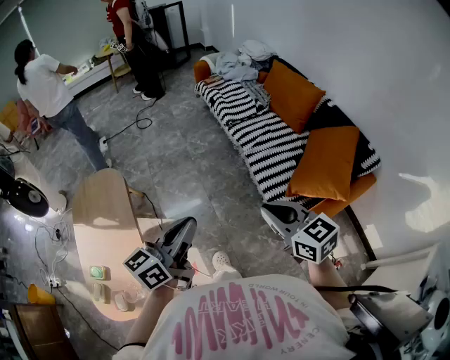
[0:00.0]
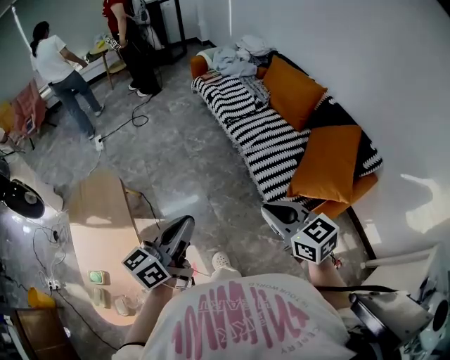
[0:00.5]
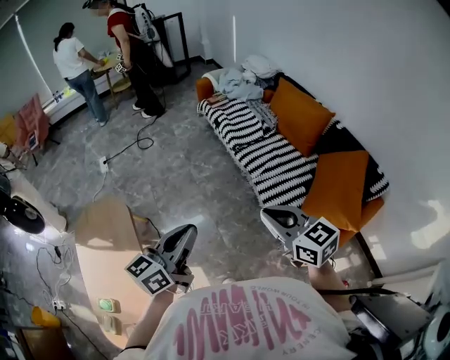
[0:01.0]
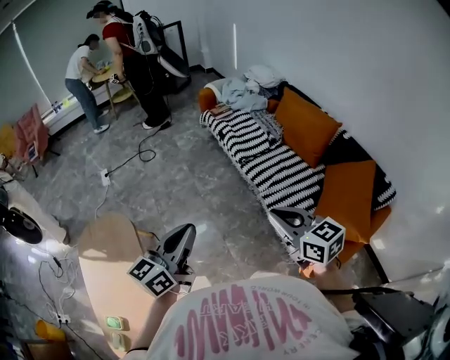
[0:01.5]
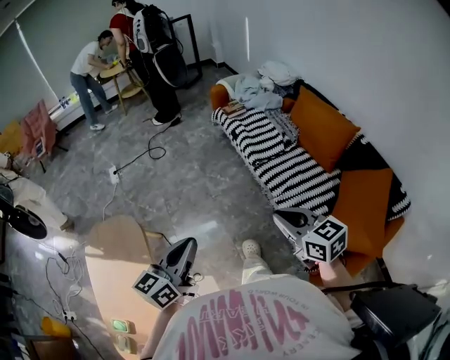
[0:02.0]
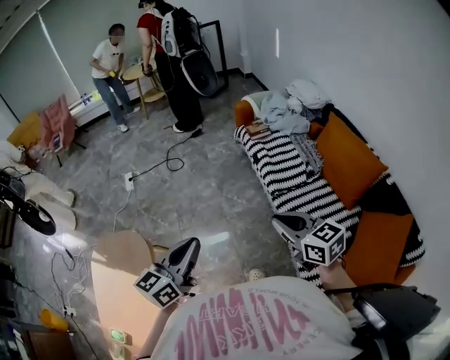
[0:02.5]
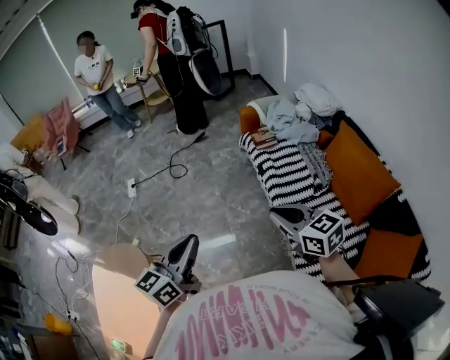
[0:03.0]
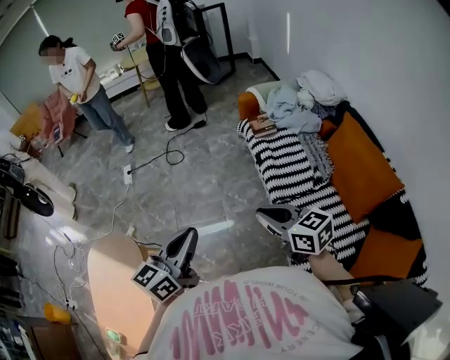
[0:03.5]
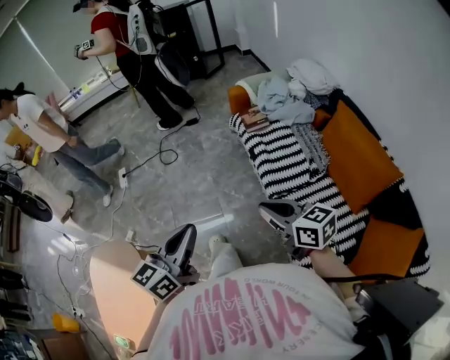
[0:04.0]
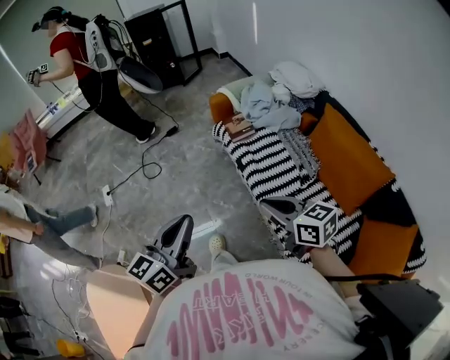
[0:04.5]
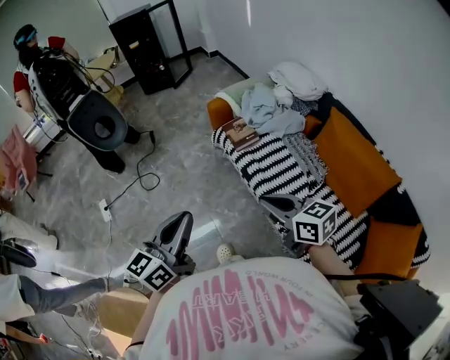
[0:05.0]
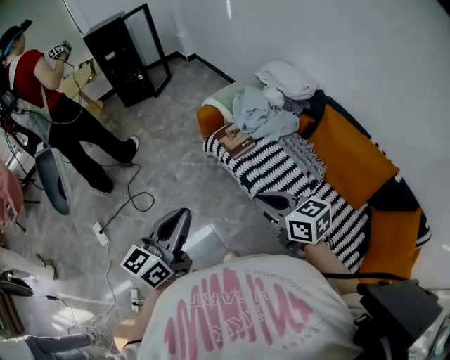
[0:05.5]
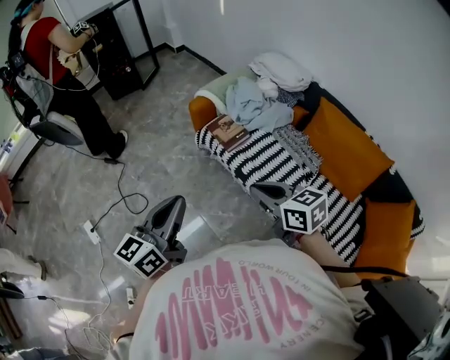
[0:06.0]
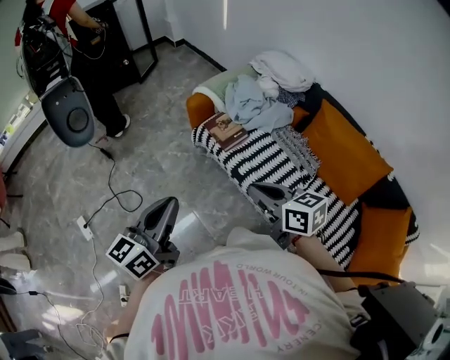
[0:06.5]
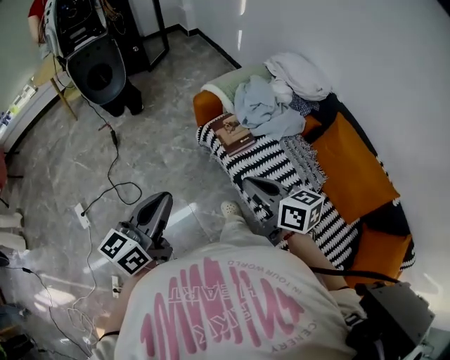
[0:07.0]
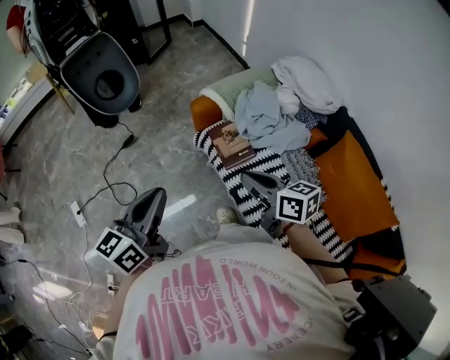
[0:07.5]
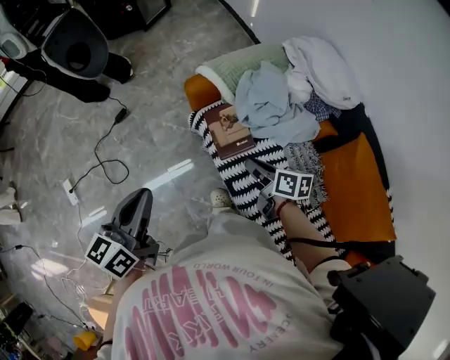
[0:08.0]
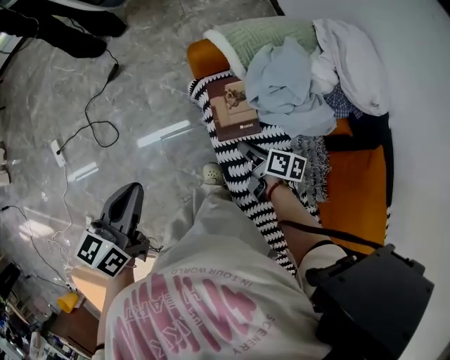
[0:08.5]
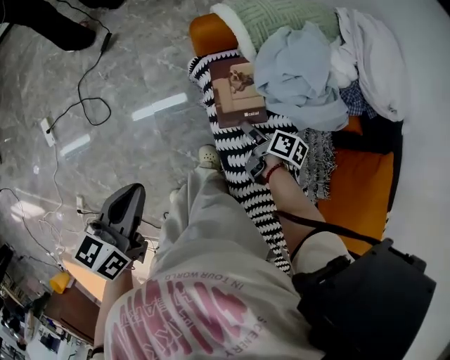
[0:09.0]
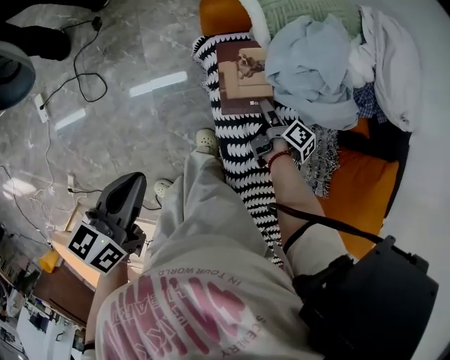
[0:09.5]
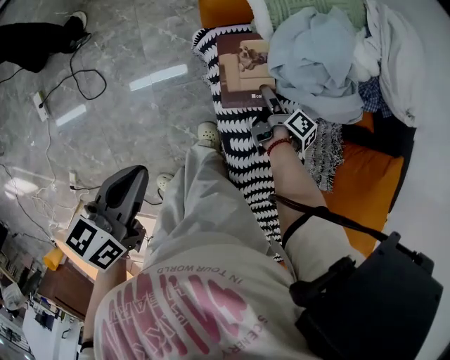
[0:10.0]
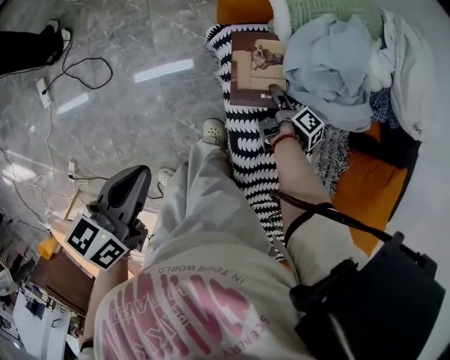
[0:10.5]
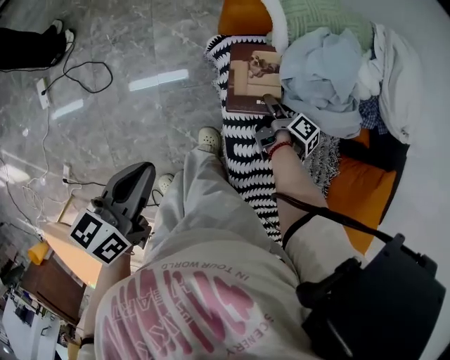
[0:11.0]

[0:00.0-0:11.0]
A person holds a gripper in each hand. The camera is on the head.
0:00.0 to 0:02.0: The left gripper goes some 25 cm forward and to the left. Meanwhile the right gripper moves forward, roughly 25 cm.
0:02.0 to 0:03.5: The two grippers go roughly 25 cm forward.
0:03.5 to 0:05.5: Both grippers travel together forward, roughly 25 cm. The left gripper swivels roughly 20 degrees. The right gripper rotates some 30 degrees.
0:05.5 to 0:07.5: The grippers both shift forward by some 20 cm.
0:07.5 to 0:09.0: The right gripper goes roughly 30 cm downward, twists about 40 degrees clockwise, seen from behind, and opens its fingers. The left gripper travels downward by about 15 cm, and swivels approximately 30 degrees.
0:09.0 to 0:11.0: The right gripper ends up roughly 5 cm from where it was, and closes its fingers.

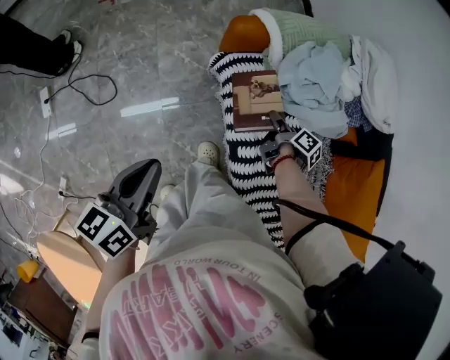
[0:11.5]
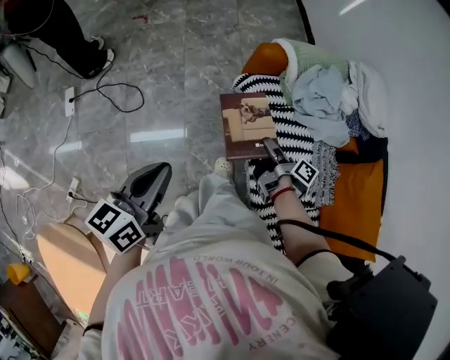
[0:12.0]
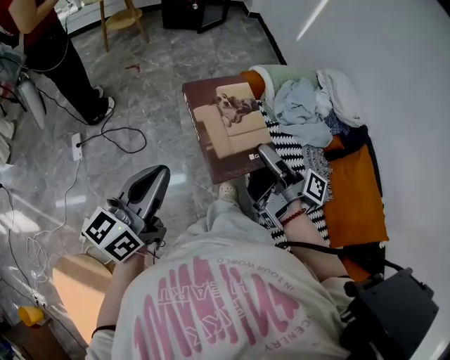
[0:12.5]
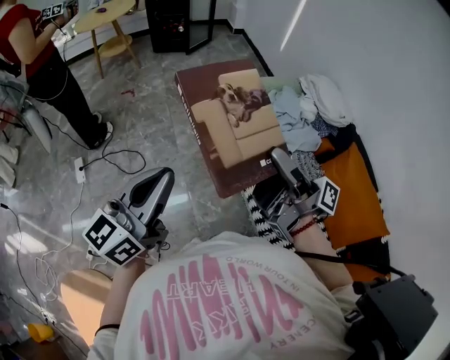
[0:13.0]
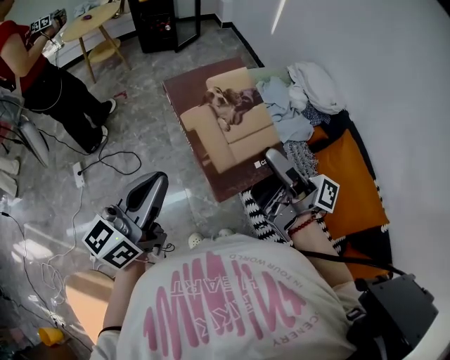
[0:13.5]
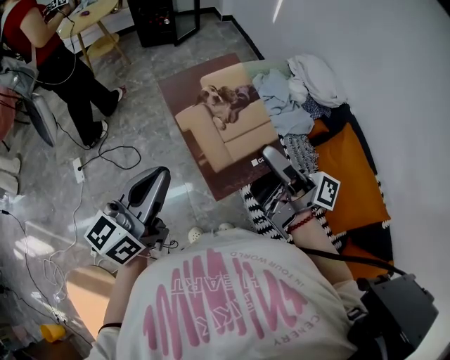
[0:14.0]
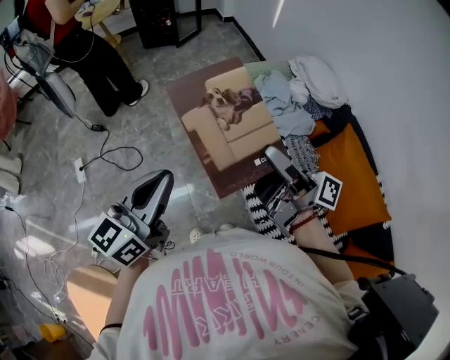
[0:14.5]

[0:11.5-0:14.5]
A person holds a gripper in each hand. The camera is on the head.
0:11.5 to 0:13.0: The left gripper heads upward and backward, covering approximately 25 cm, and changes its angle by roughly 40 degrees; the right gripper goes approximately 50 cm upward and backward, and angles its fingers upward, by approximately 60 degrees.
0:13.0 to 0:14.5: Both grippers move to the right, approximately 5 cm.

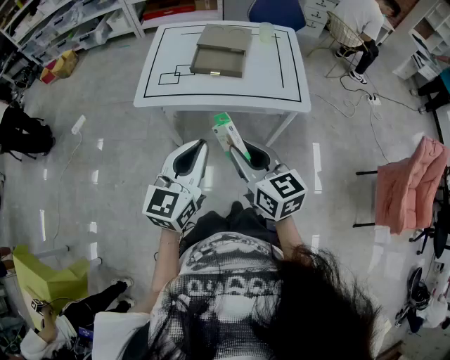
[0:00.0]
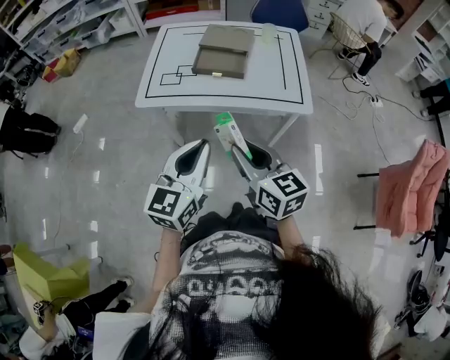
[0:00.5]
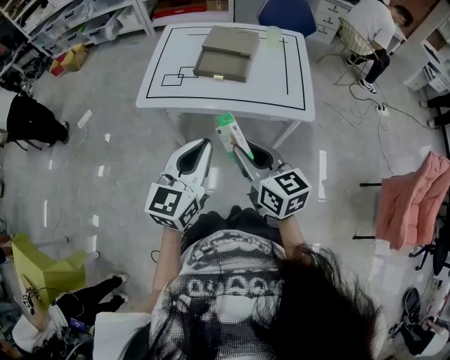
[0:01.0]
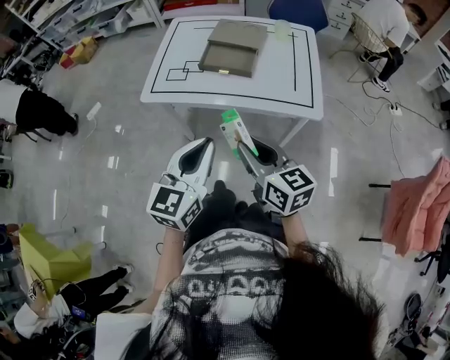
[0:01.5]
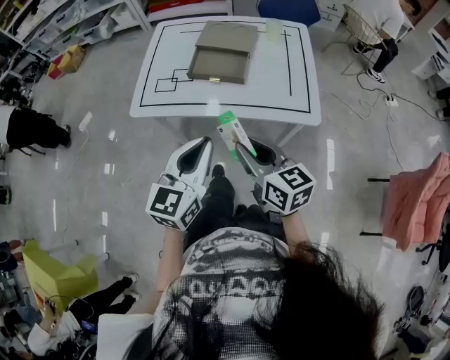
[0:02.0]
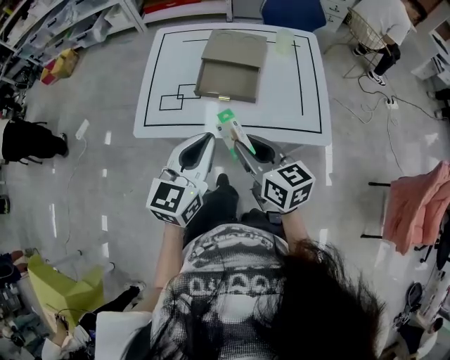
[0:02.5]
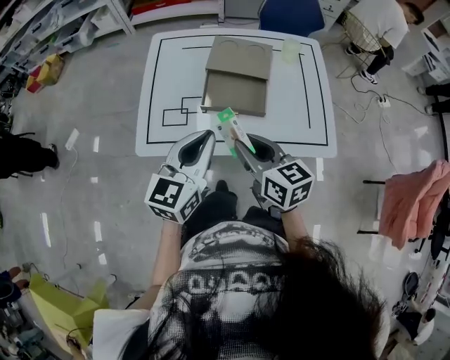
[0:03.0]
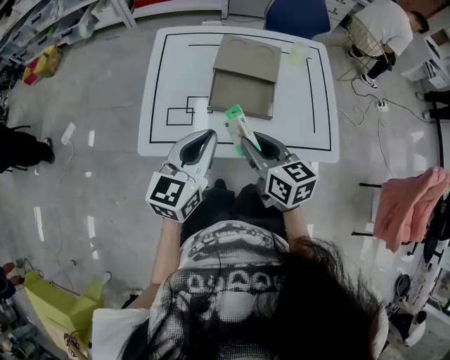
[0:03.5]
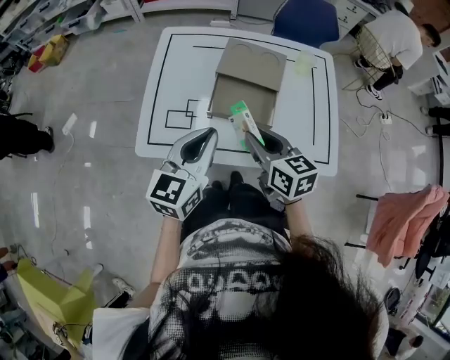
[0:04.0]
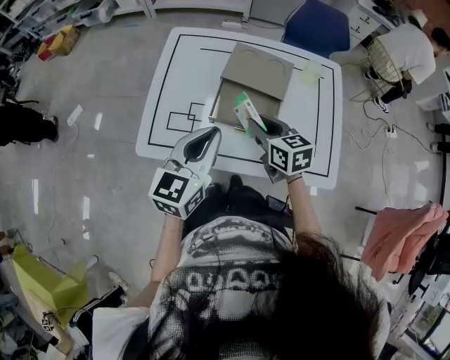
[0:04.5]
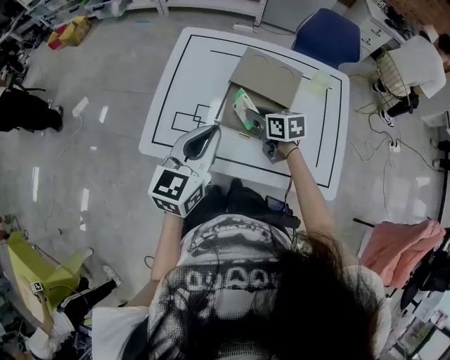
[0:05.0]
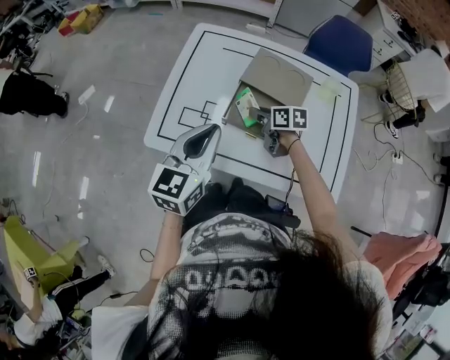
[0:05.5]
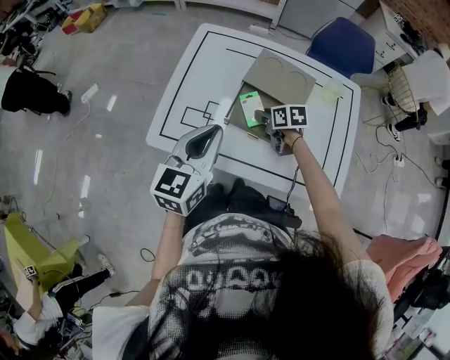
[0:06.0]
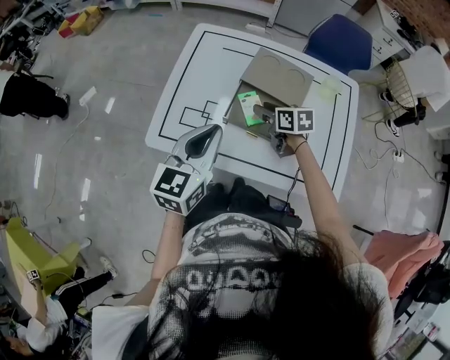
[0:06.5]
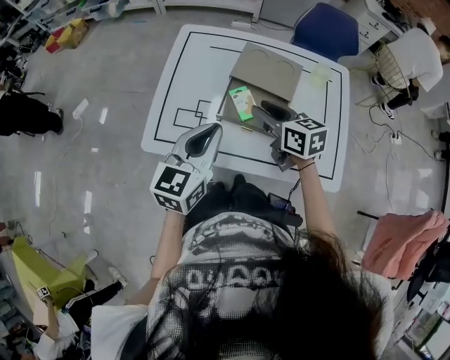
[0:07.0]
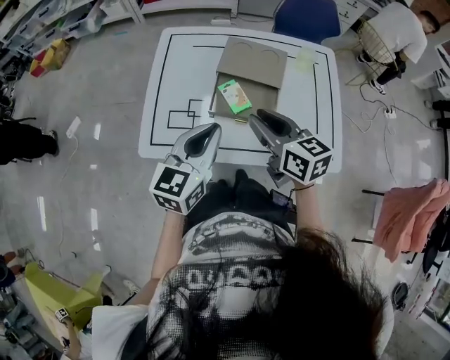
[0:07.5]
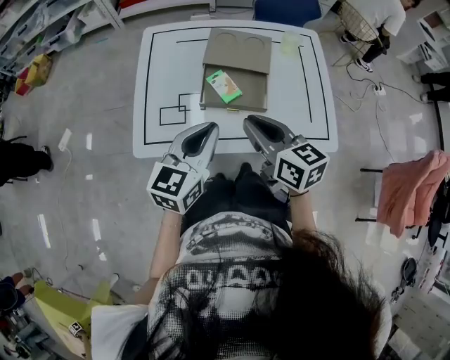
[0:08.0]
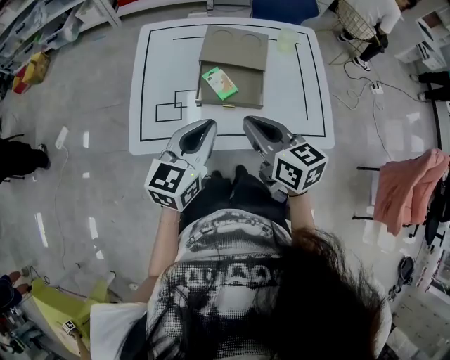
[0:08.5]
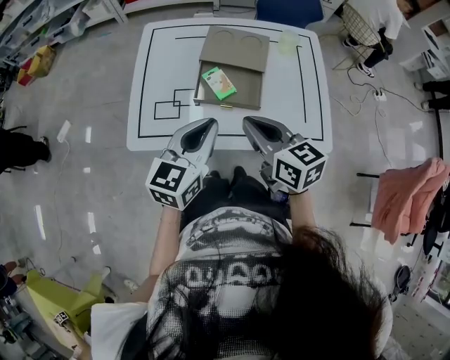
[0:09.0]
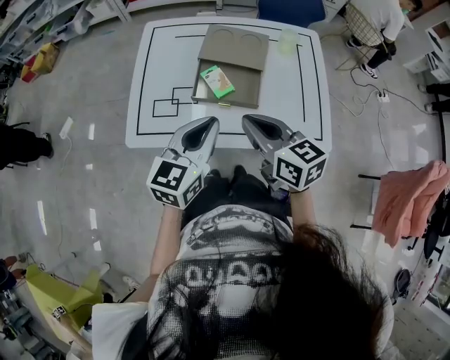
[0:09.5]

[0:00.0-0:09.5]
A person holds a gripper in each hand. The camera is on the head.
0:00.0 to 0:02.0: The grippers both shift forward and to the right by approximately 10 cm.
0:02.0 to 0:04.0: The left gripper goes roughly 30 cm forward and to the left. The right gripper travels forward by some 25 cm.
0:04.0 to 0:05.5: The right gripper is displaced forward and downward by about 20 cm, and turns by about 30 degrees.
0:05.5 to 0:07.5: The right gripper shifts about 25 cm upward and backward, and swivels roughly 30 degrees.
0:07.5 to 0:09.5: The left gripper moves approximately 5 cm, while the right gripper is displaced backward by some 5 cm, and closes its fingers.

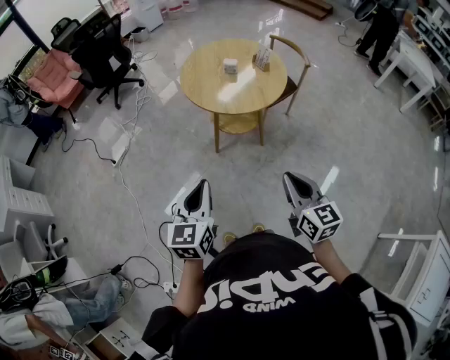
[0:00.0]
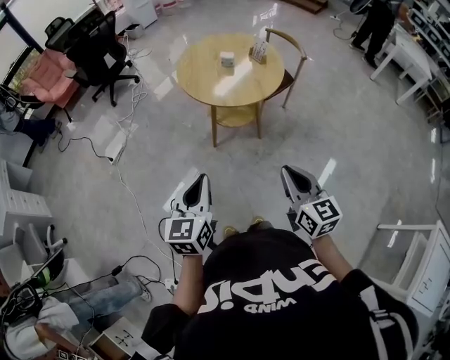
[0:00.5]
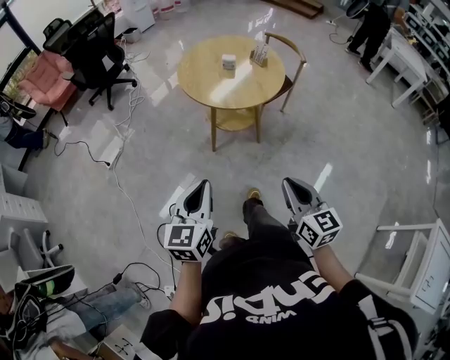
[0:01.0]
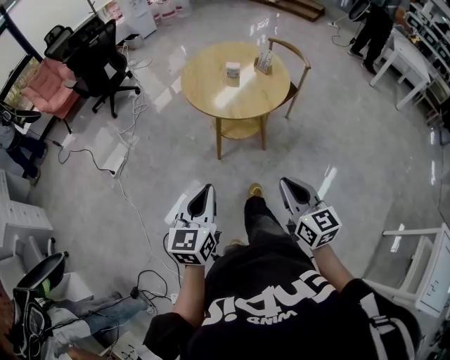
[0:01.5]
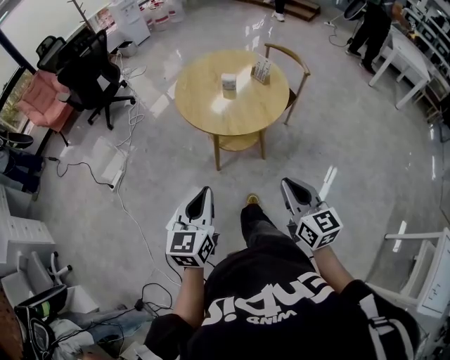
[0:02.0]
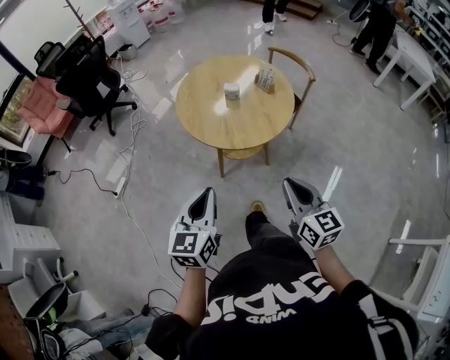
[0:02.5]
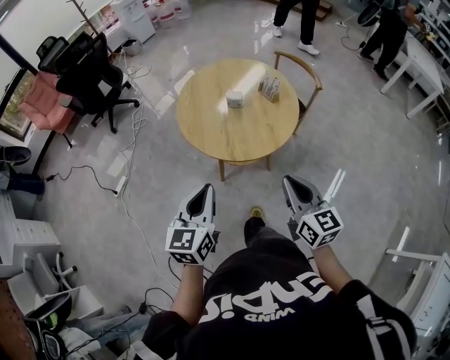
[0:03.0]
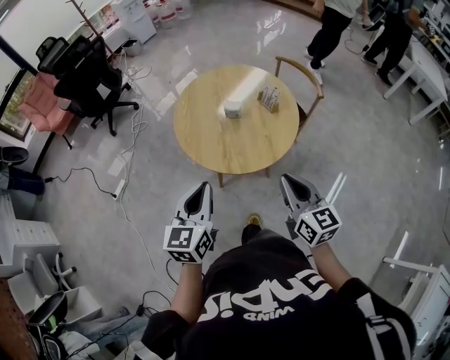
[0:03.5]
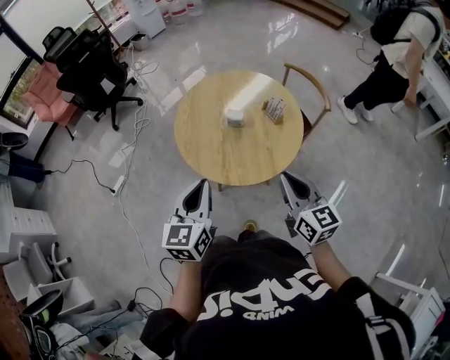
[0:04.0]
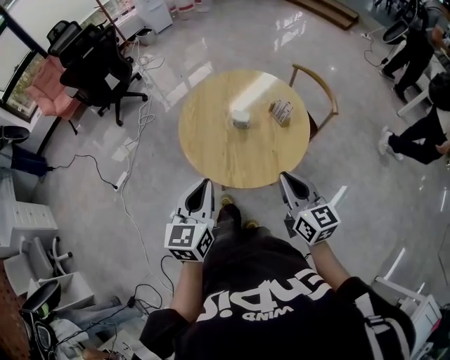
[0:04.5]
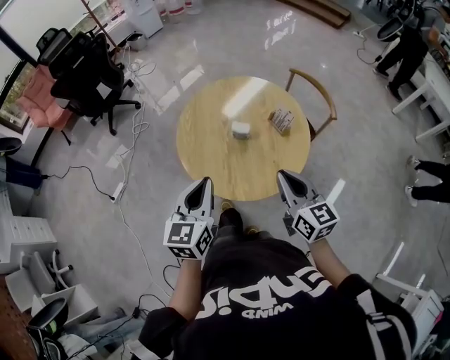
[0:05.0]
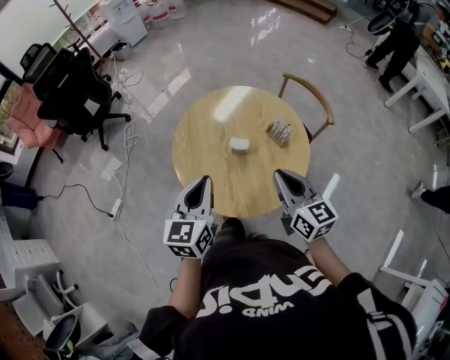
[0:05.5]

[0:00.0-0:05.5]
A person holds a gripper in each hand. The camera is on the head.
0:00.0 to 0:02.0: Both grippers move forward, some 10 cm.
0:02.0 to 0:03.5: The grippers both shift forward by approximately 20 cm.
0:03.5 to 0:05.5: The two grippers go roughly 20 cm forward.
